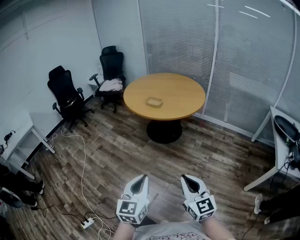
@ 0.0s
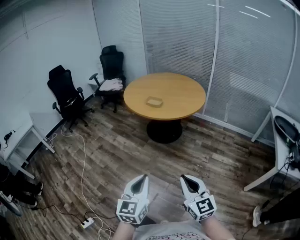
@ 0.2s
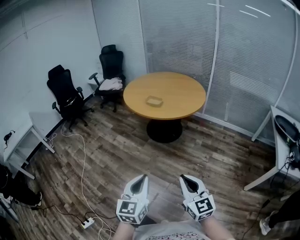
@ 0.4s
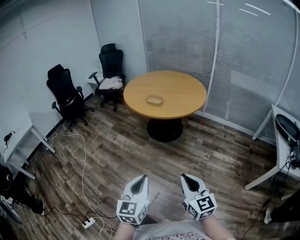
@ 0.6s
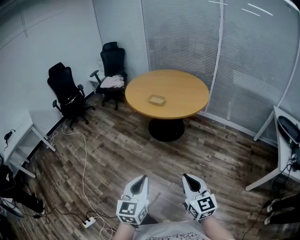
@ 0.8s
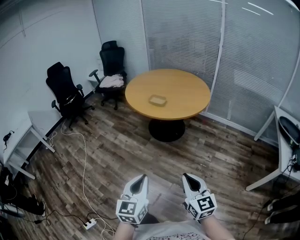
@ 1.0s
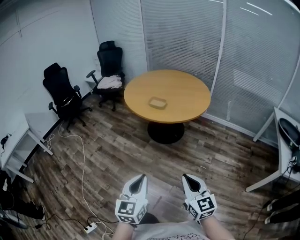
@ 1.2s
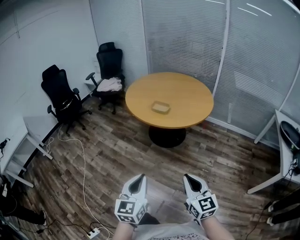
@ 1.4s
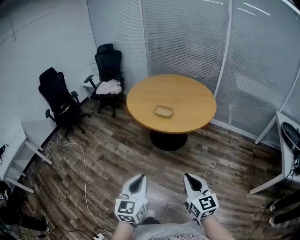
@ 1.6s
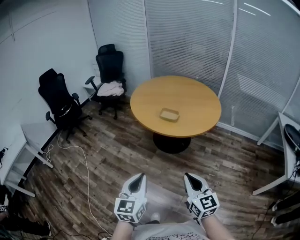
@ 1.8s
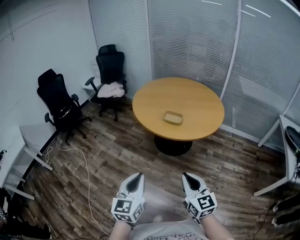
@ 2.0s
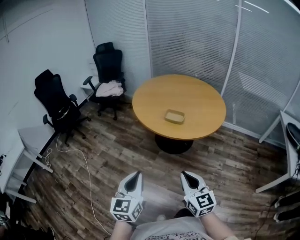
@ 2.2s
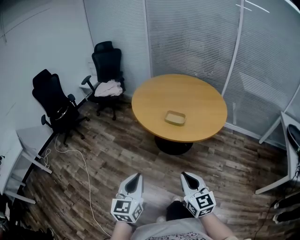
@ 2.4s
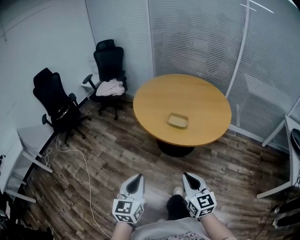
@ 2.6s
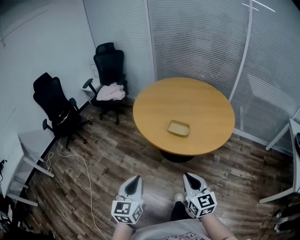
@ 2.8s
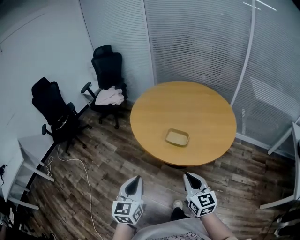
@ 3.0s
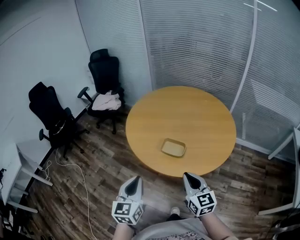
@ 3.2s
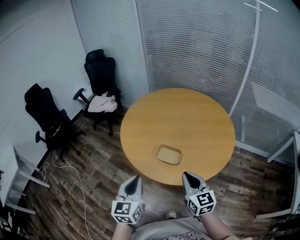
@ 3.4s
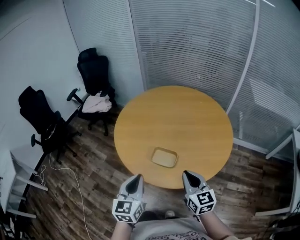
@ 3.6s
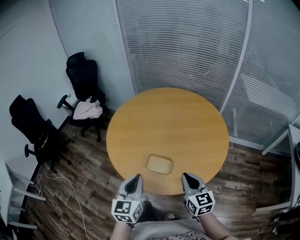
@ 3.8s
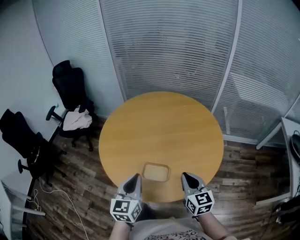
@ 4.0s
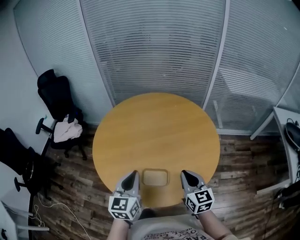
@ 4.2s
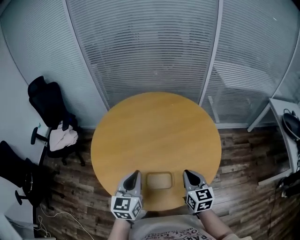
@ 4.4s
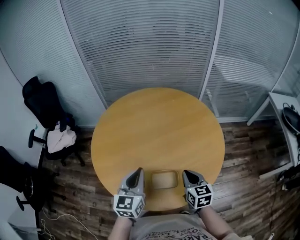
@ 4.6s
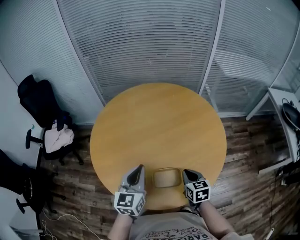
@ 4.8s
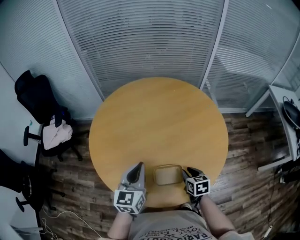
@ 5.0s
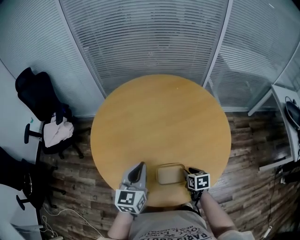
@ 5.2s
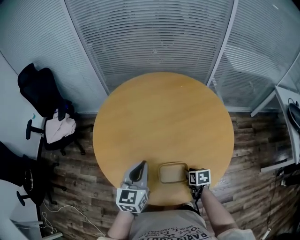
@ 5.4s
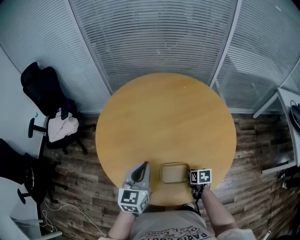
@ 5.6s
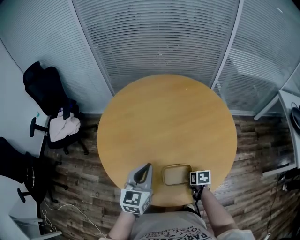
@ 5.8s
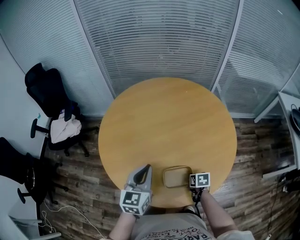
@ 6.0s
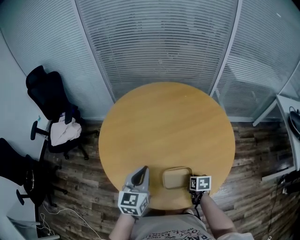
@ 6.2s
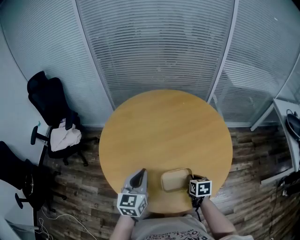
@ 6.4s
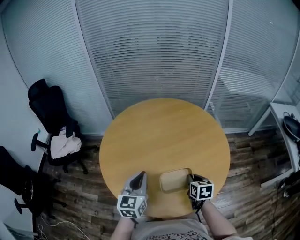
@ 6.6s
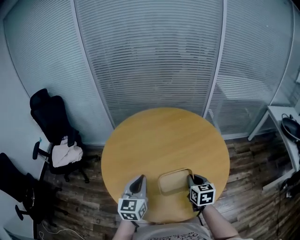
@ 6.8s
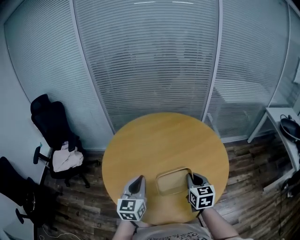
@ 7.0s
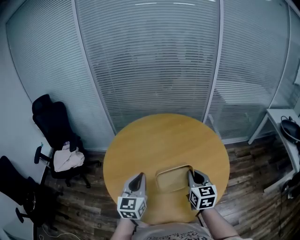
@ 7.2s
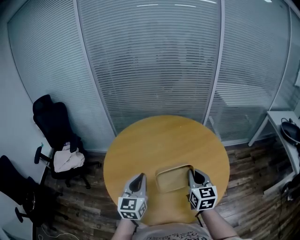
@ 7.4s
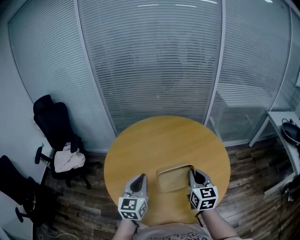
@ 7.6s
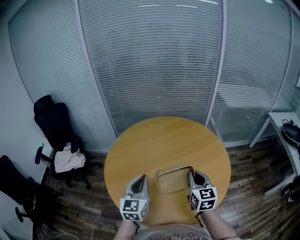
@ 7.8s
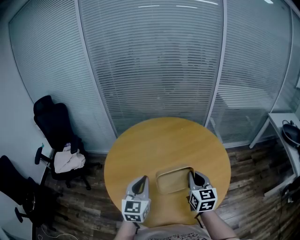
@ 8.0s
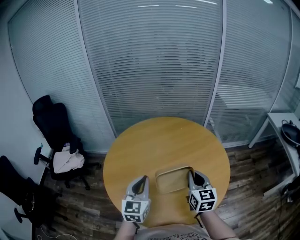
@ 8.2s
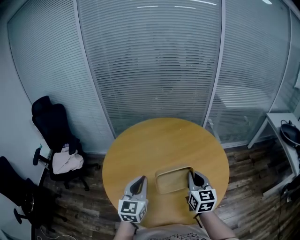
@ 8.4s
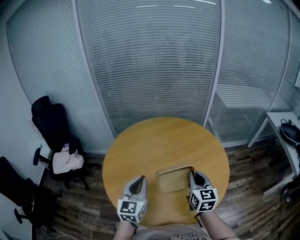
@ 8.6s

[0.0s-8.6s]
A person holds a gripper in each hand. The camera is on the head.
0.0s to 1.4s: The two grippers go approximately 20 cm forward and to the left.
1.4s to 2.8s: The left gripper heads forward and to the left, covering roughly 35 cm. The right gripper heads forward, covering about 30 cm.
2.8s to 4.4s: The pair of grippers is taken roughly 50 cm. The right gripper swivels approximately 30 degrees. Meanwhile the left gripper rotates approximately 30 degrees.
4.4s to 5.8s: The left gripper shifts about 10 cm downward and to the left, while the right gripper moves downward, roughly 25 cm, points its fingers some 40 degrees further downward, and opens, then closes once more.
5.8s to 7.2s: The right gripper heads upward, covering some 30 cm, and points its fingers roughly 50 degrees further upward, while the left gripper goes some 10 cm upward.
7.2s to 8.6s: There are only small adjustments of the grippers.

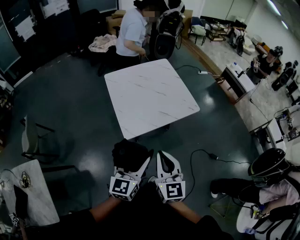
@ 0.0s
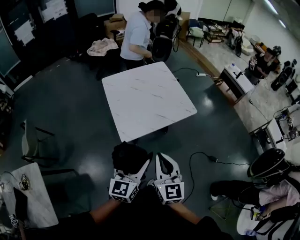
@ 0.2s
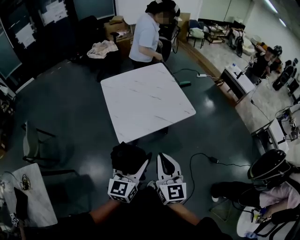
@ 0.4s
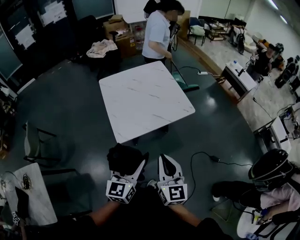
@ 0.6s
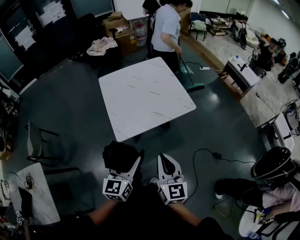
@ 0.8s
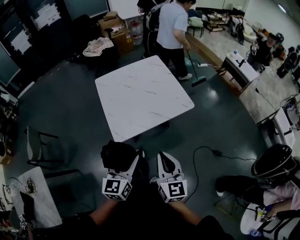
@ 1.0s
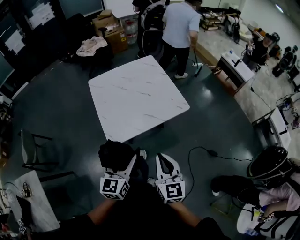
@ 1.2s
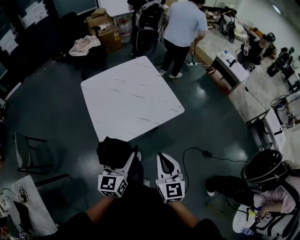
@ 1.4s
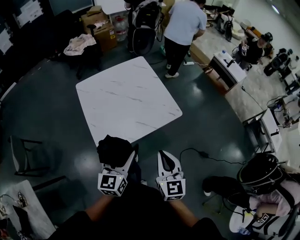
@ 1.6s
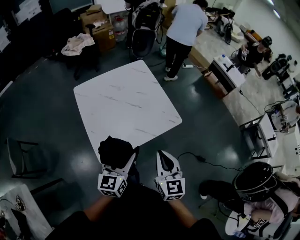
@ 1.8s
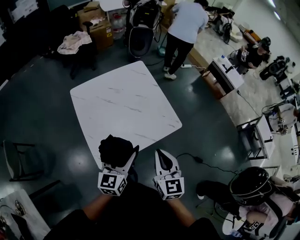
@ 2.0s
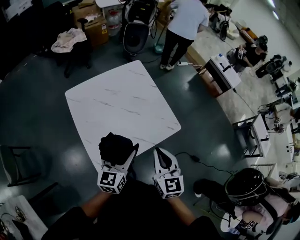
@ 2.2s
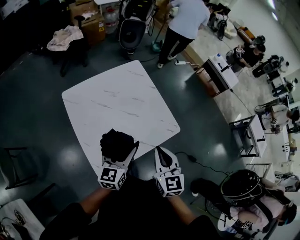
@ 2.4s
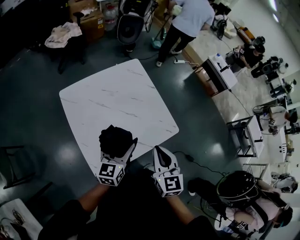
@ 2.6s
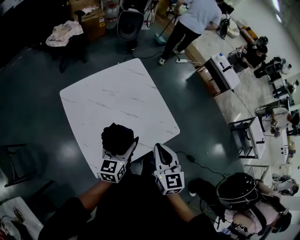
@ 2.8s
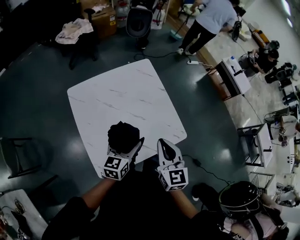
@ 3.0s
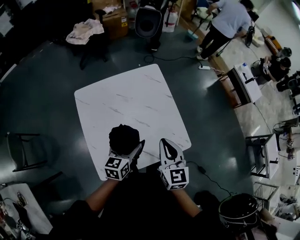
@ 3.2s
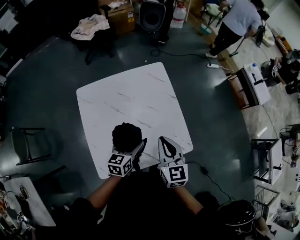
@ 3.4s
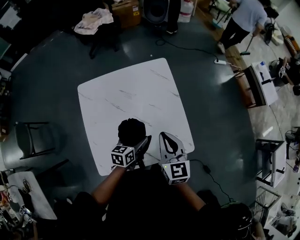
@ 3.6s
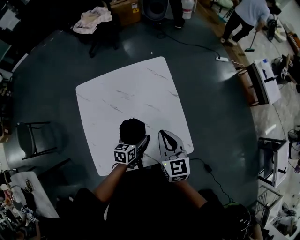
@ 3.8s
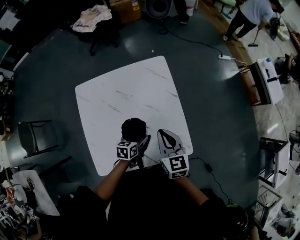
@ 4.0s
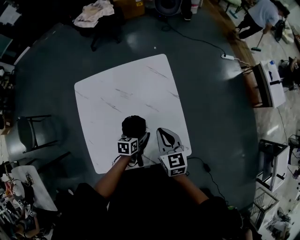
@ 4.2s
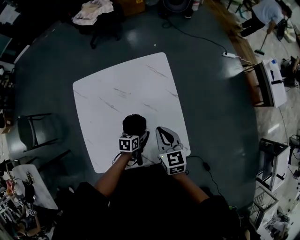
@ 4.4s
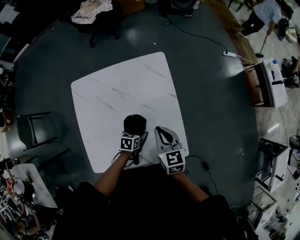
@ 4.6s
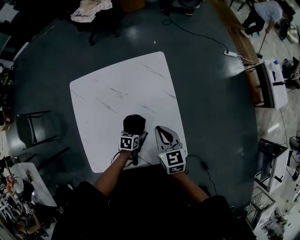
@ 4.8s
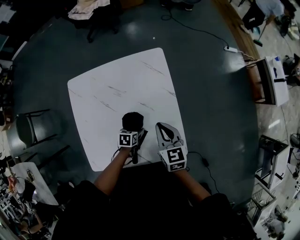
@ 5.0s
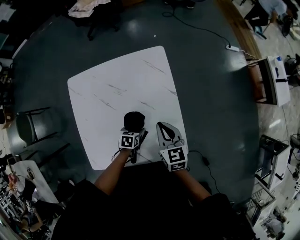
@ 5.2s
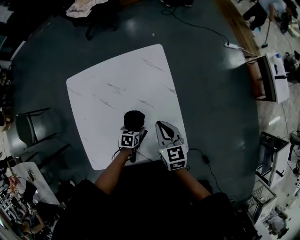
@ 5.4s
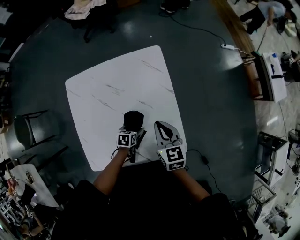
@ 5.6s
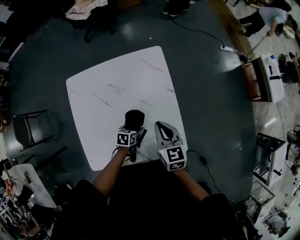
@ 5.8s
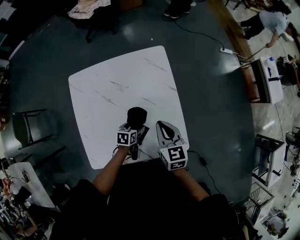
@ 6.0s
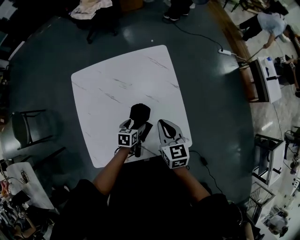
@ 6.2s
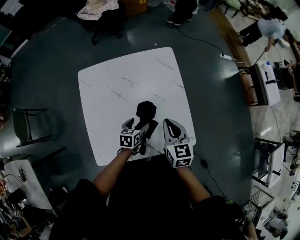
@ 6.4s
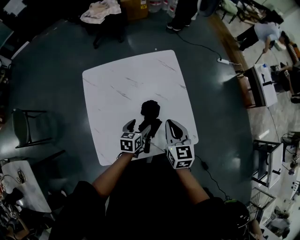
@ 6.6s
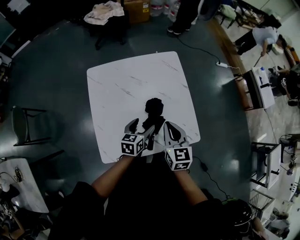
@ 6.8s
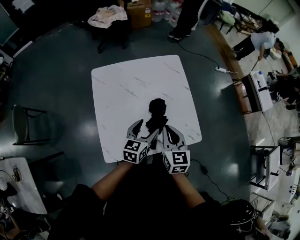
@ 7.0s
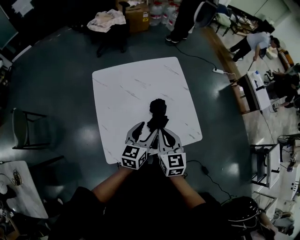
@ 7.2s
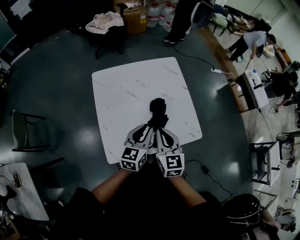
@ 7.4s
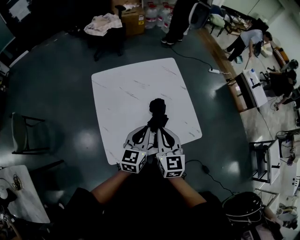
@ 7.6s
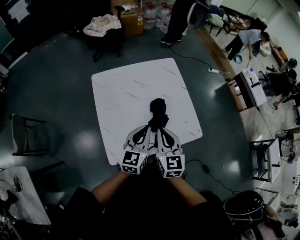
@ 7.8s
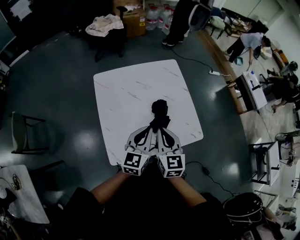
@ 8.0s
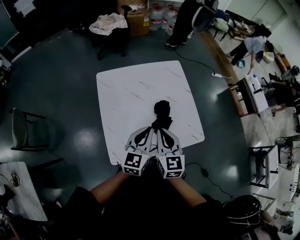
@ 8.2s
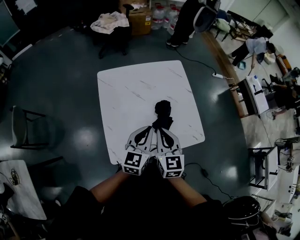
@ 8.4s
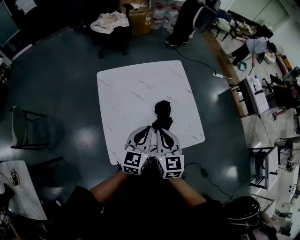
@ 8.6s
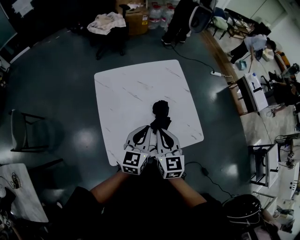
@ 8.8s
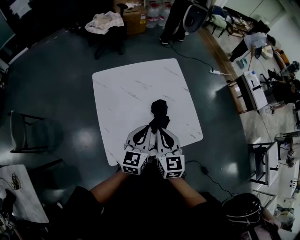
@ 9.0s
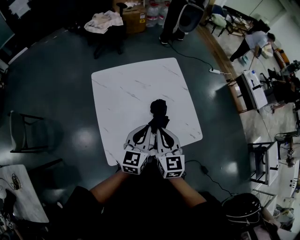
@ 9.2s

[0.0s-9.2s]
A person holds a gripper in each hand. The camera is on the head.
0.0s to 1.6s: The left gripper shifts approximately 20 cm forward and to the right; the right gripper goes approximately 20 cm to the right and forward.
1.6s to 3.0s: Both grippers move forward, about 25 cm.
3.0s to 4.6s: The left gripper goes approximately 30 cm downward and forward, and points its fingers approximately 40 degrees further downward. Meanwhile the right gripper goes about 25 cm forward and downward, and rotates approximately 30 degrees.
4.6s to 6.2s: The grippers stay close to where they were, moving slightly.
6.2s to 7.6s: The left gripper travels upward and backward by roughly 30 cm, tips its fingers upward by roughly 40 degrees, and closes. Meanwhile the right gripper travels backward, to the left and upward by about 25 cm.
7.6s to 9.2s: There are only small adjustments of the grippers.

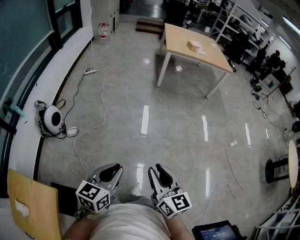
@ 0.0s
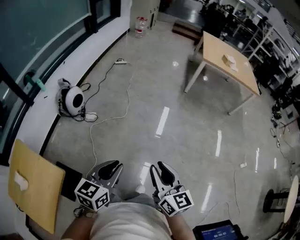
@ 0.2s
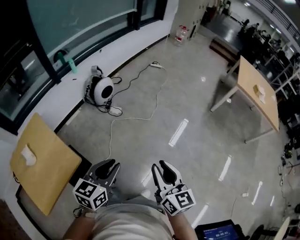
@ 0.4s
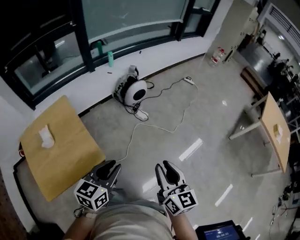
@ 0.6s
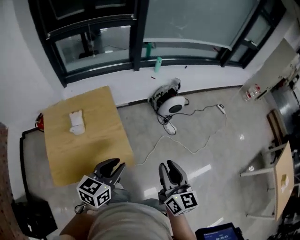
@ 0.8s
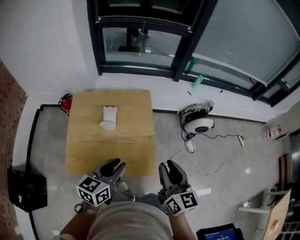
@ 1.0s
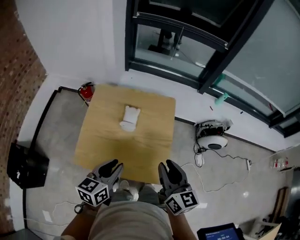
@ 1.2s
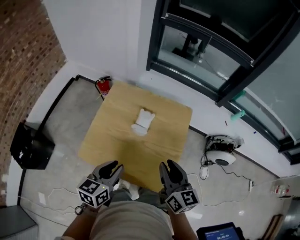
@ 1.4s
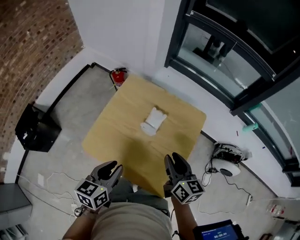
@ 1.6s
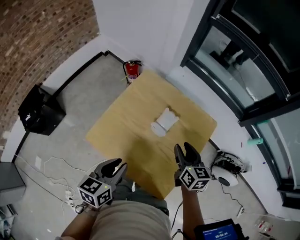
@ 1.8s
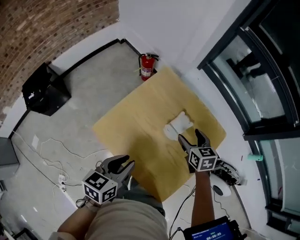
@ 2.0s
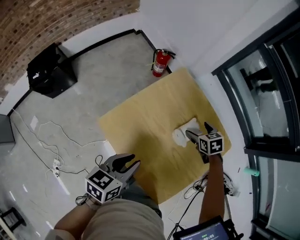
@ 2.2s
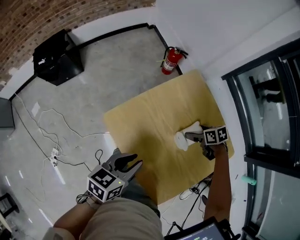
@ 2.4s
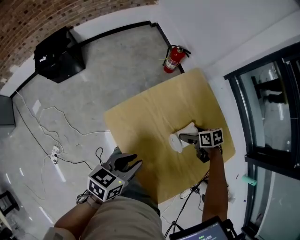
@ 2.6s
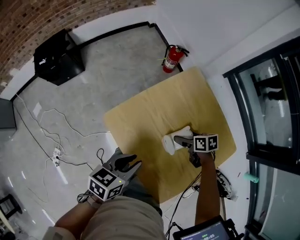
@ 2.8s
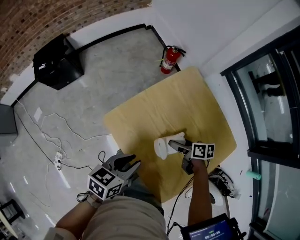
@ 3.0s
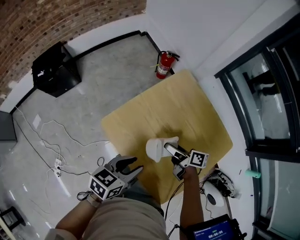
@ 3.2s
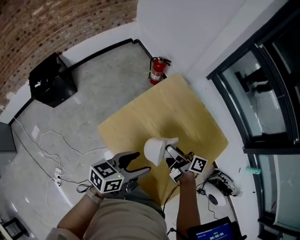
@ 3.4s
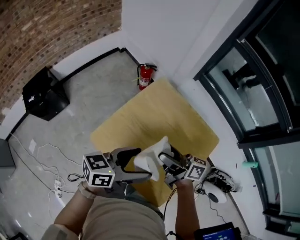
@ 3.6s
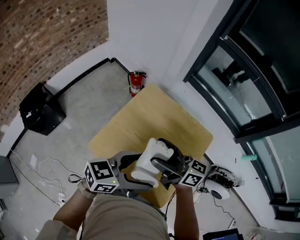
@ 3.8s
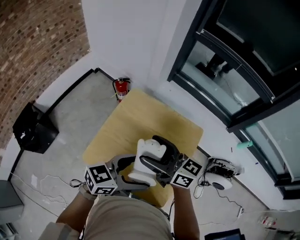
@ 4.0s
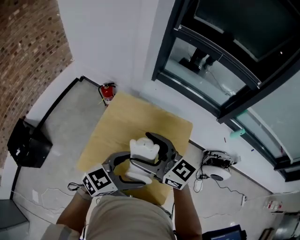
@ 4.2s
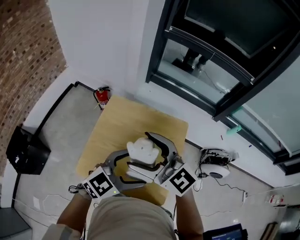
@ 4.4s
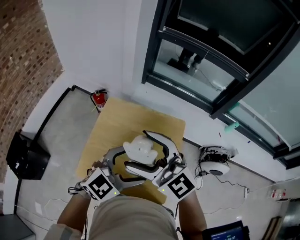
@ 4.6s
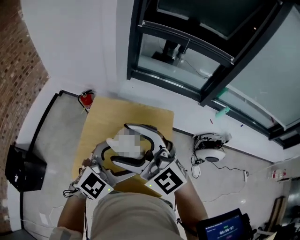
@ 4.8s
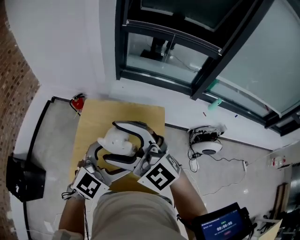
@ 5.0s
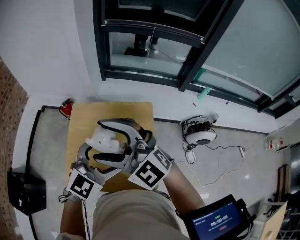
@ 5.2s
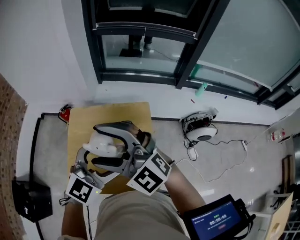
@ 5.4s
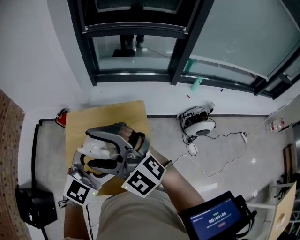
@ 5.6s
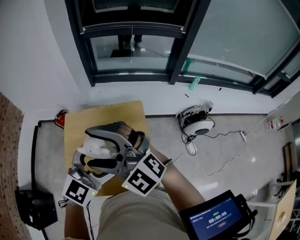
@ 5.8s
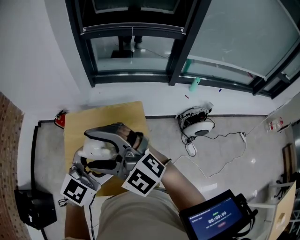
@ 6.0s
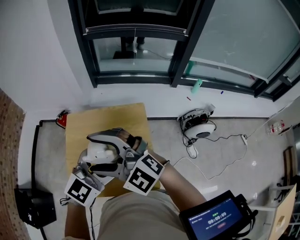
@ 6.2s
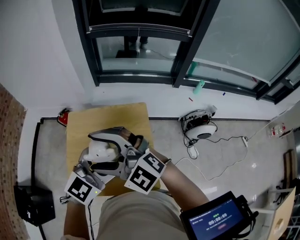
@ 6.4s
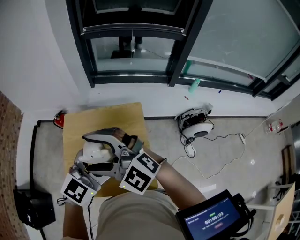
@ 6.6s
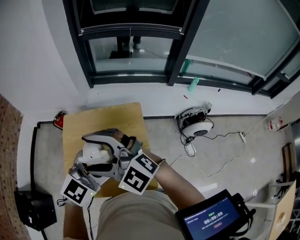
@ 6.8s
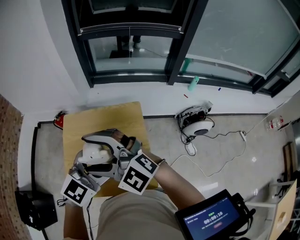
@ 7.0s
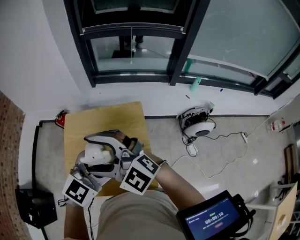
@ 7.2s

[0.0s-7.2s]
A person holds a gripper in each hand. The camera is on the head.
0.0s to 1.4s: Both grippers are carried roughly 80 cm. The left gripper turns by some 100 degrees. The right gripper swivels about 100 degrees.
1.4s to 2.8s: The left gripper travels downward by about 10 cm, and swivels about 30 degrees. Meanwhile the right gripper shifts approximately 30 cm downward, points its fingers about 40 degrees further downward, and opens its fingers.
2.8s to 4.4s: The left gripper travels upward by roughly 20 cm, changes its angle by approximately 70 degrees, and opens up. The right gripper moves upward, about 40 cm, and tilts its fingers some 50 degrees upward.
4.4s to 5.8s: The right gripper moves upward and to the right, roughly 5 cm, and swivels approximately 40 degrees. The left gripper is displaced to the right and upward by roughly 10 cm.
5.8s to 7.2s: The grippers move only a little.
